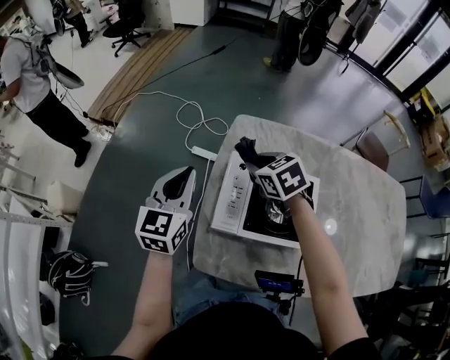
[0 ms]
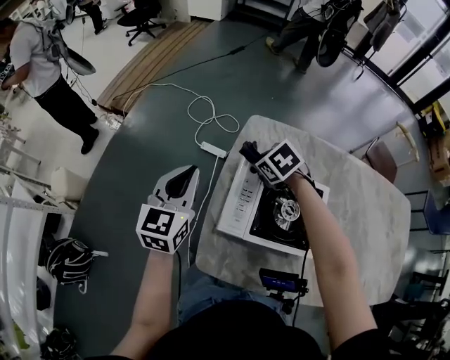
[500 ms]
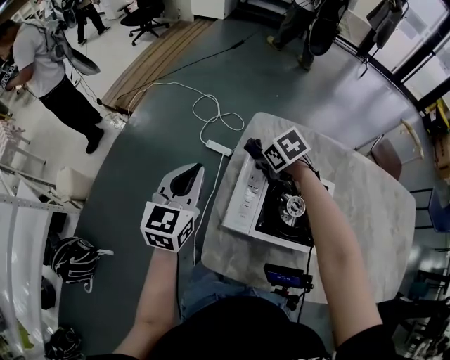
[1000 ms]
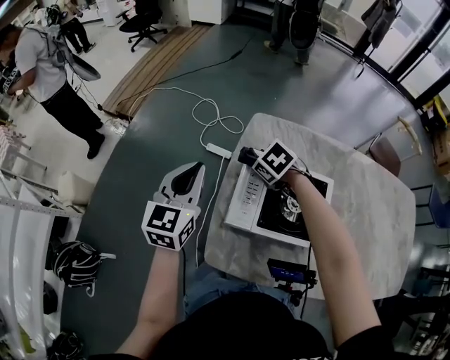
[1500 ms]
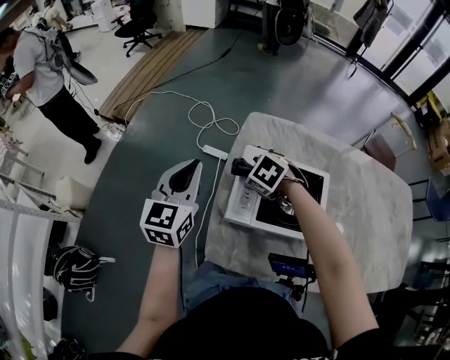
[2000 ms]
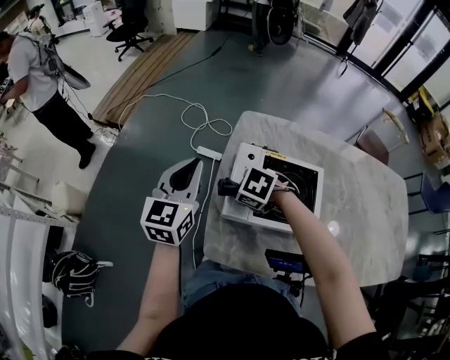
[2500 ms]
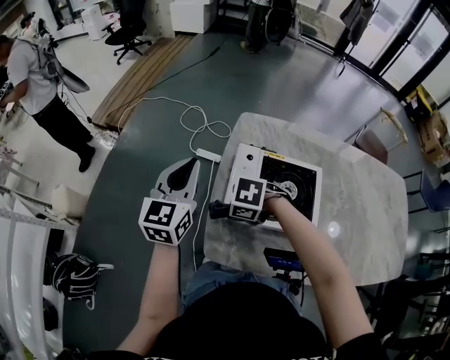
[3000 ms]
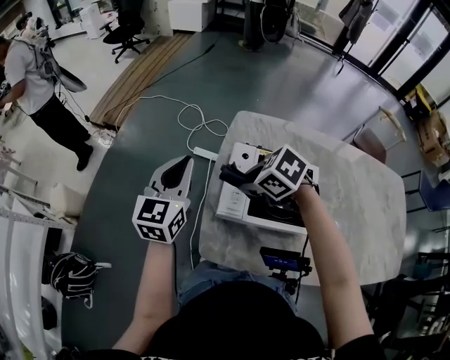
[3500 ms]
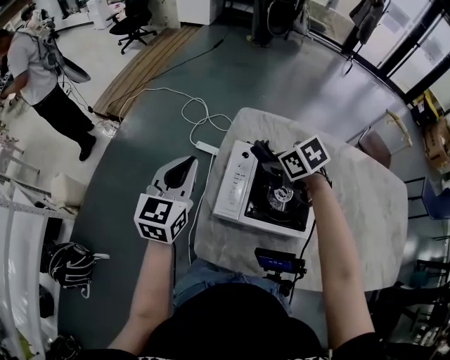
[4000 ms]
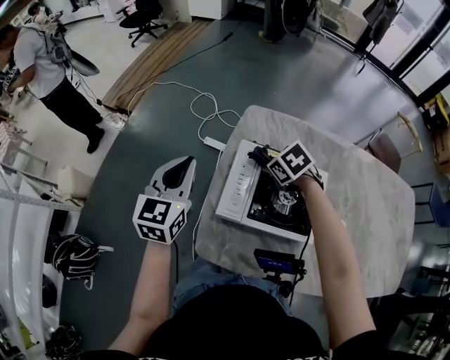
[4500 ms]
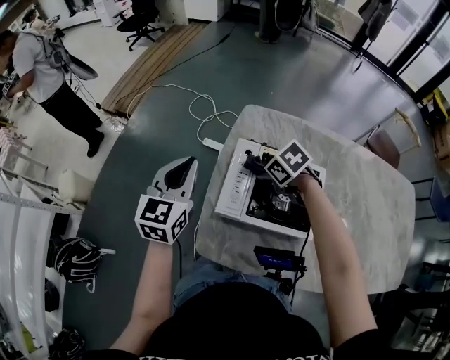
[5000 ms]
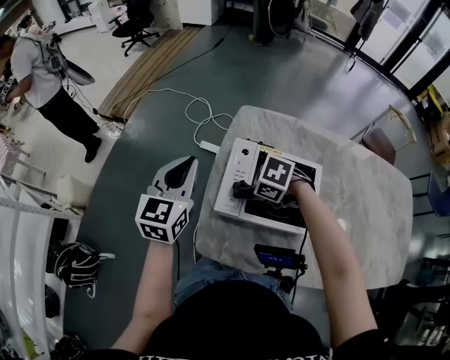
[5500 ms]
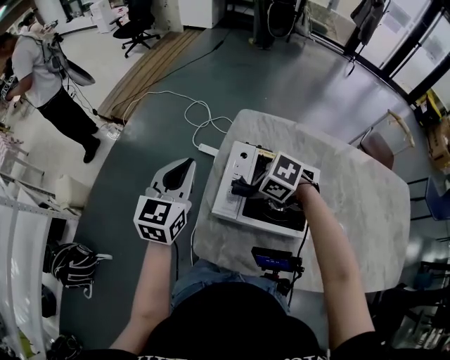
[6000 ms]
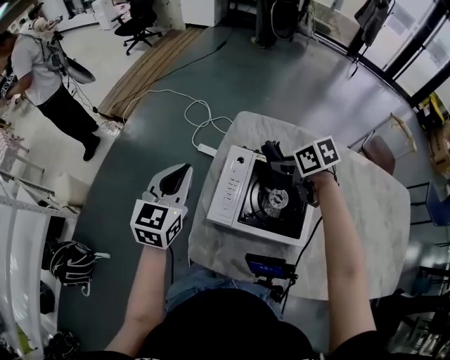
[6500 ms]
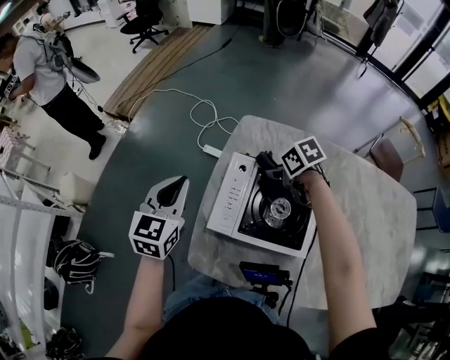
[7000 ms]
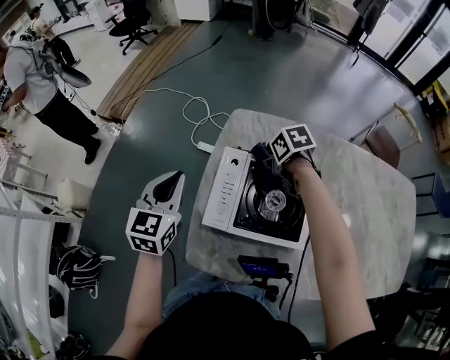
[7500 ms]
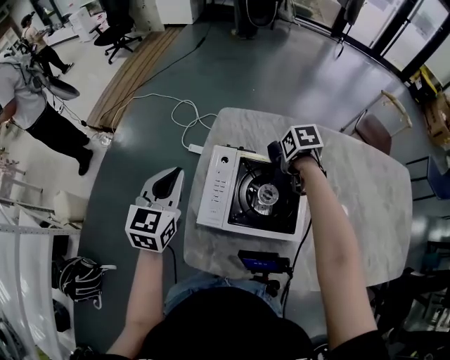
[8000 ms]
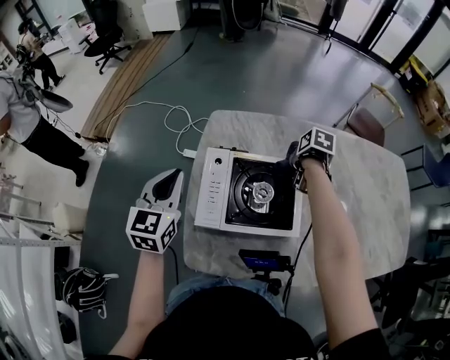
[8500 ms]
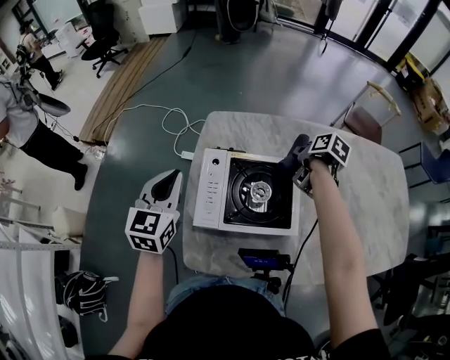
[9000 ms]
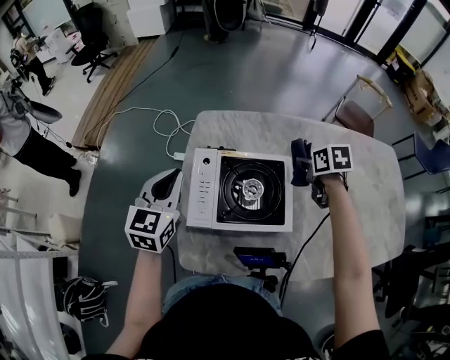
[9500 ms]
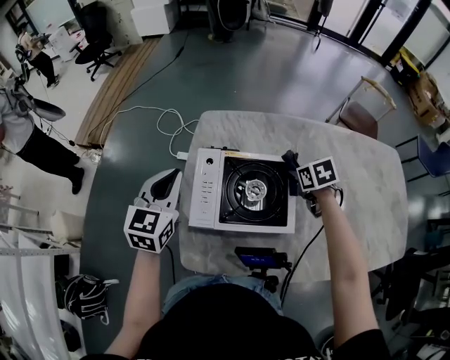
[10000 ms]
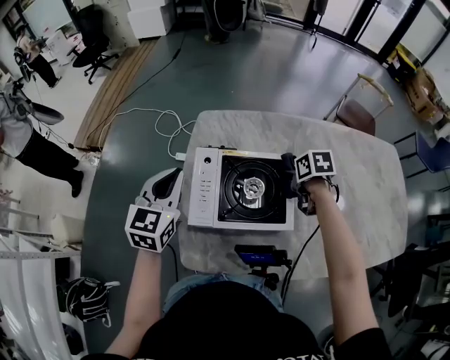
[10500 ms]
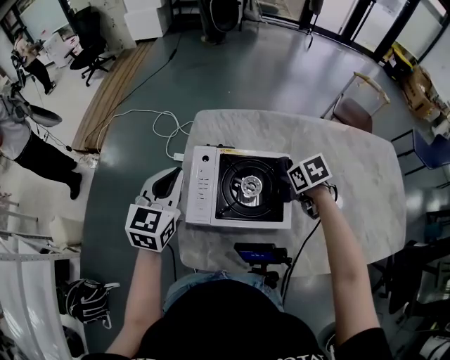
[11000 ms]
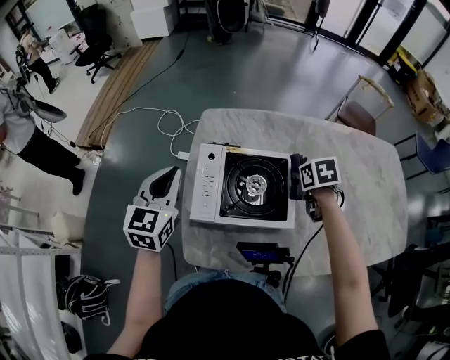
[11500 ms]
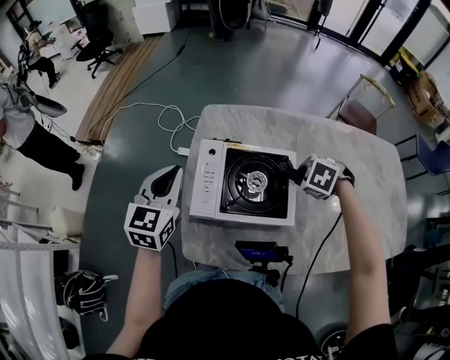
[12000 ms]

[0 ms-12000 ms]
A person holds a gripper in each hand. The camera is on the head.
0 ms to 2000 ms: The right gripper travels downward and to the left by about 10 cm, and swivels some 30 degrees.
2000 ms to 4000 ms: The right gripper moves roughly 10 cm, and swivels about 30 degrees.
4000 ms to 6000 ms: The right gripper moves some 10 cm, and swivels some 30 degrees.
6000 ms to 8000 ms: The right gripper changes place by some 20 cm, and twists some 60 degrees clockwise, seen from behind.
8000 ms to 10000 ms: The right gripper moves to the right and backward, roughly 10 cm.
10000 ms to 12000 ms: The right gripper ends up about 5 cm from where it was, and twists about 50 degrees counterclockwise, seen from behind.

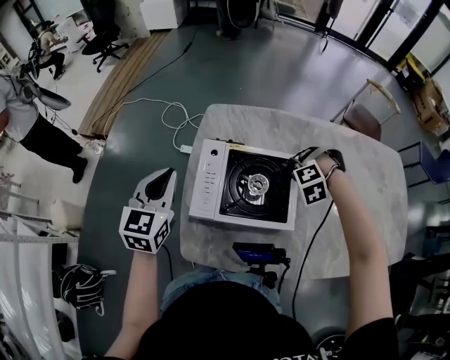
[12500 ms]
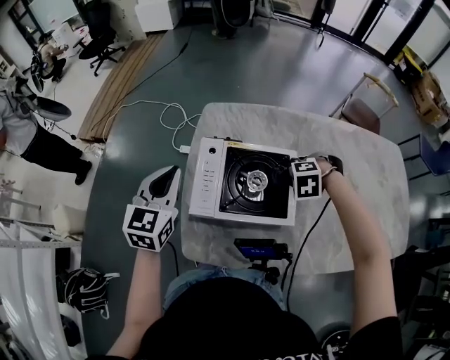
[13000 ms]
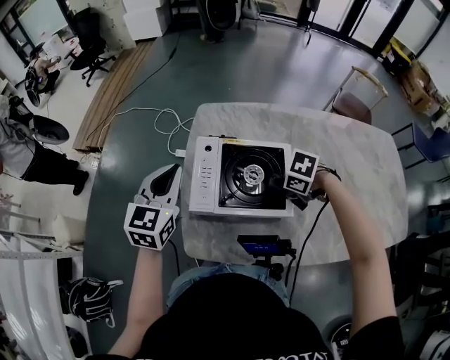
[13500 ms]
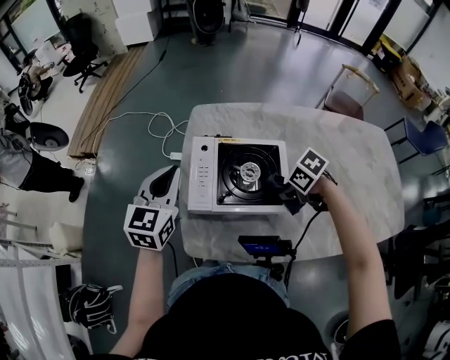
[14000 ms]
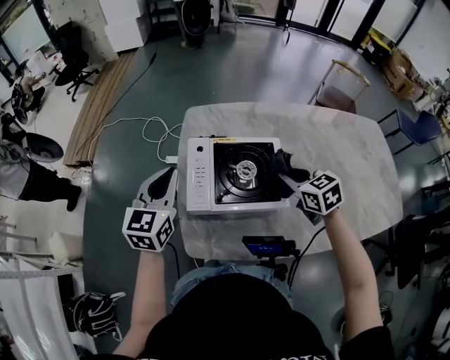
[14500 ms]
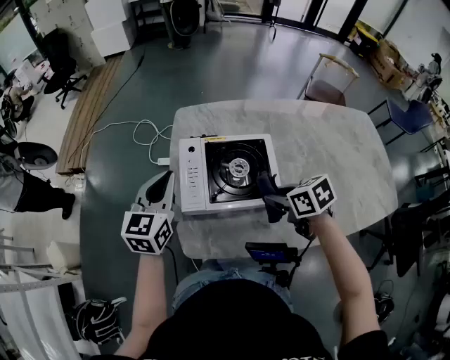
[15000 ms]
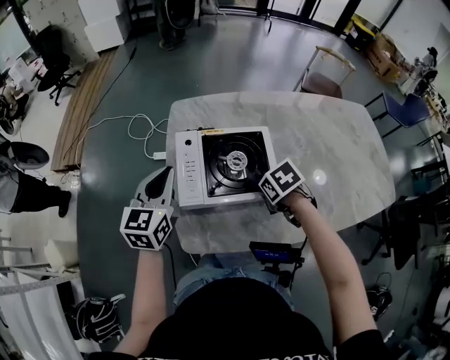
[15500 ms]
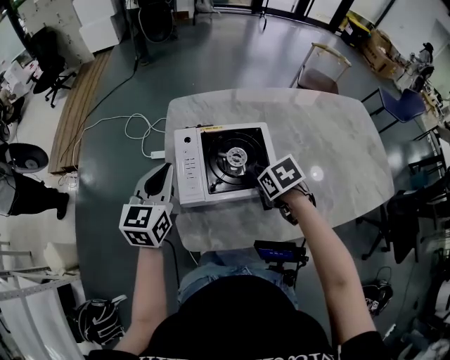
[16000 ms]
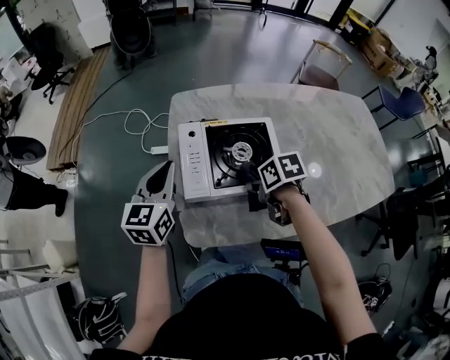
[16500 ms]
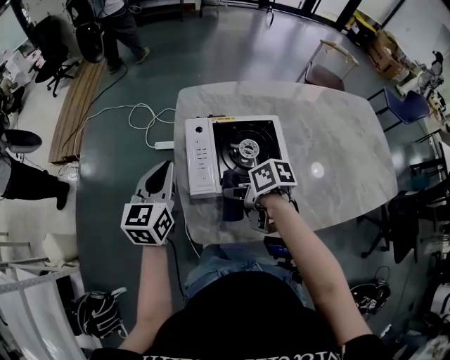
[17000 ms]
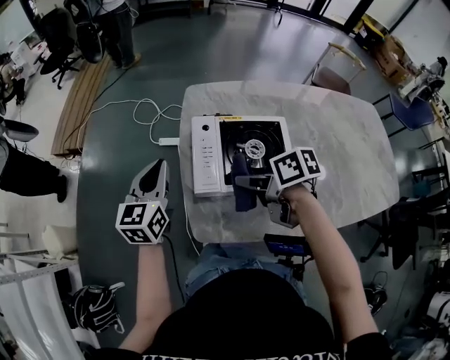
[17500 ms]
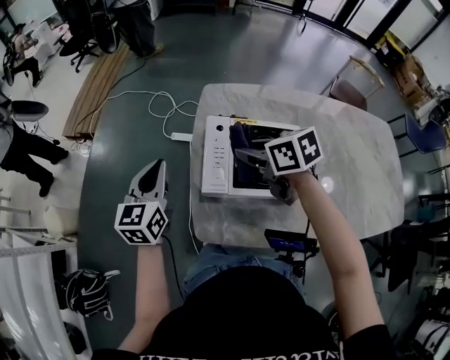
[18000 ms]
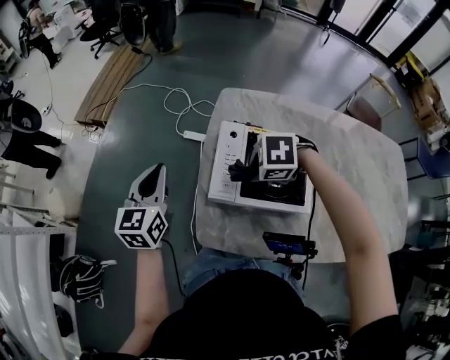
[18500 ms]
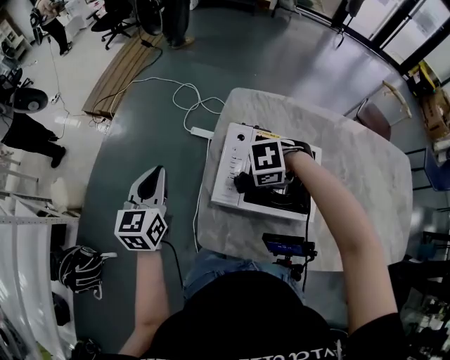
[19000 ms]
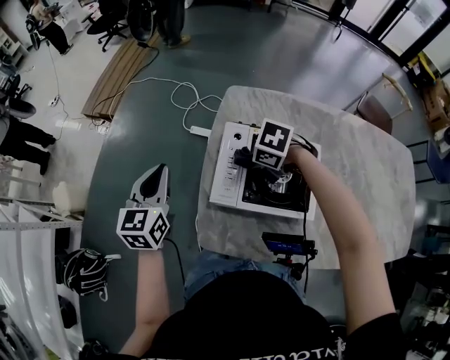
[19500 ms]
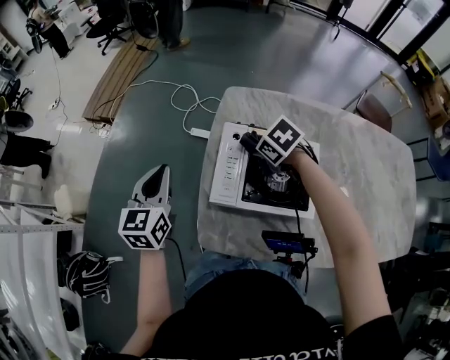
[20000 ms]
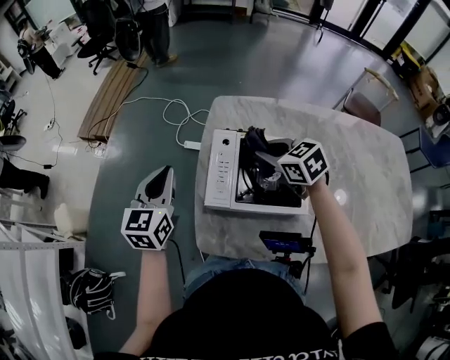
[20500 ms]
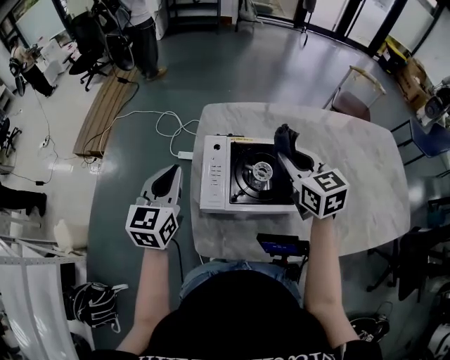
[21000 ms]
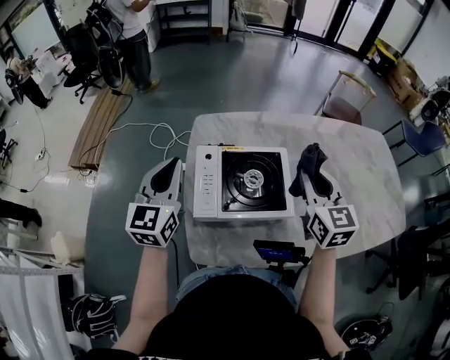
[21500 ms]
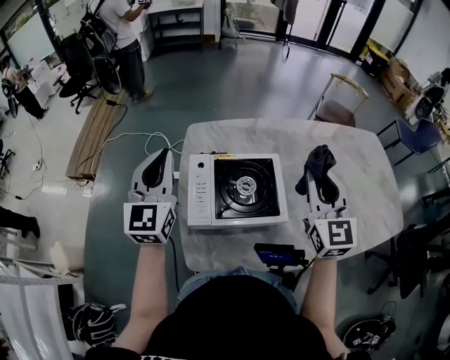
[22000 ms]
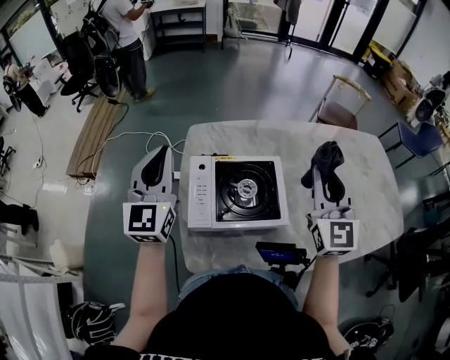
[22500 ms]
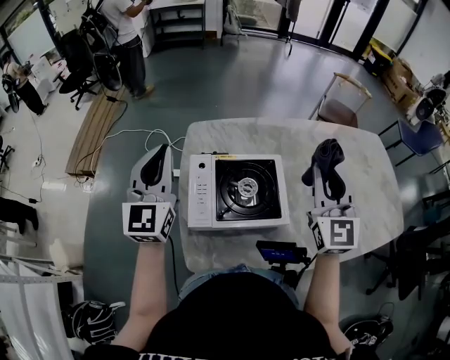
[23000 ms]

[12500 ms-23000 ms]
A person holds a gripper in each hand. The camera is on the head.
12500 ms to 14500 ms: The right gripper moves upward, about 10 cm, and rolls clockwise, seen from behind, by roughly 90 degrees.
14500 ms to 16500 ms: The right gripper ends up some 15 cm from where it was, and swivels roughly 40 degrees.
16500 ms to 19000 ms: The left gripper changes place by roughly 15 cm, and swivels approximately 30 degrees. Meanwhile the right gripper goes upward and returns, about 10 cm each way, and rotates around the line of its fingers by roughly 90 degrees, counterclockwise from behind.
19000 ms to 21000 ms: The left gripper shifts by some 10 cm. Meanwhile the right gripper heads upward, covering roughly 15 cm, and tips its fingers upward by approximately 50 degrees.
21000 ms to 23000 ms: The right gripper goes roughly 15 cm to the right and upward, and rotates some 40 degrees. The left gripper is displaced upward and forward by about 10 cm, and rotates about 20 degrees.

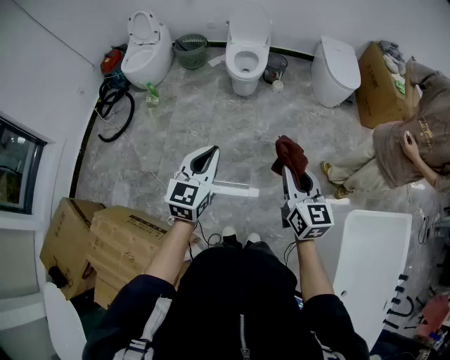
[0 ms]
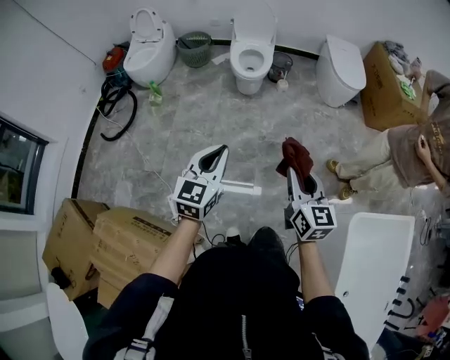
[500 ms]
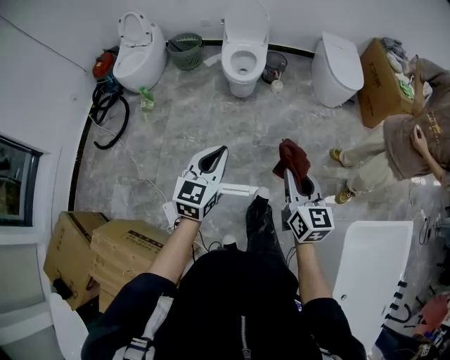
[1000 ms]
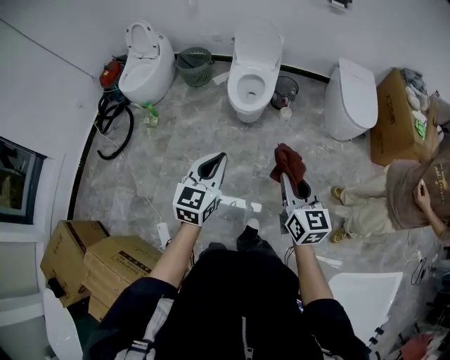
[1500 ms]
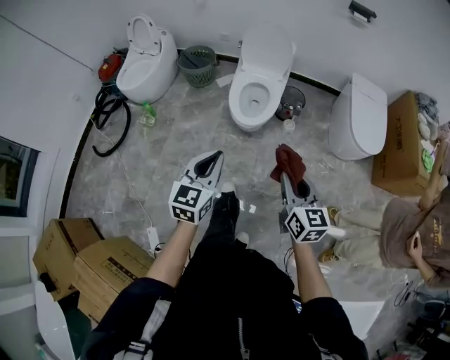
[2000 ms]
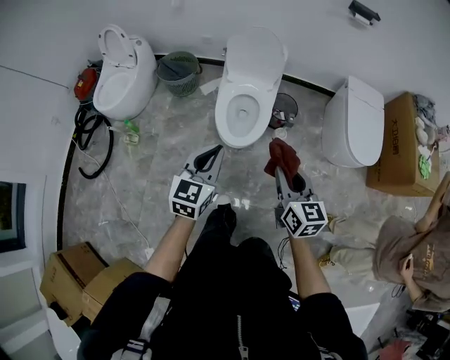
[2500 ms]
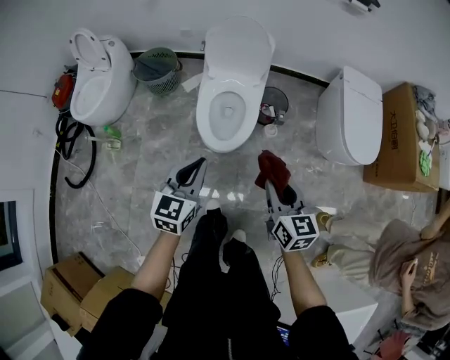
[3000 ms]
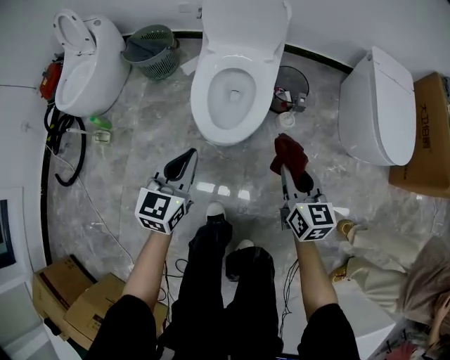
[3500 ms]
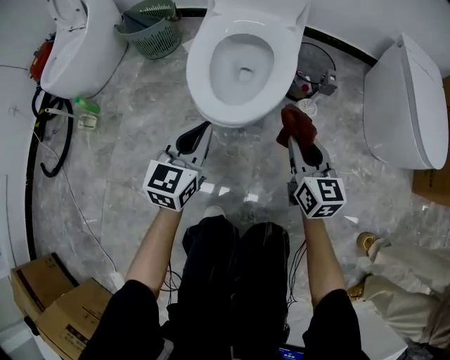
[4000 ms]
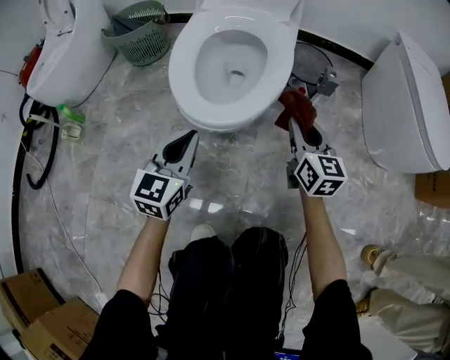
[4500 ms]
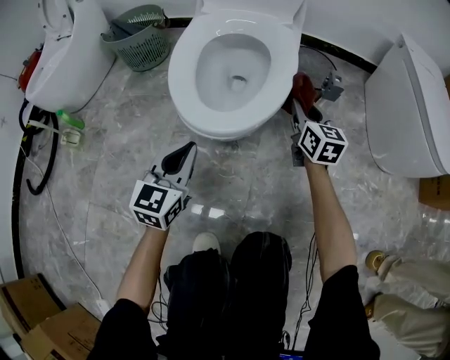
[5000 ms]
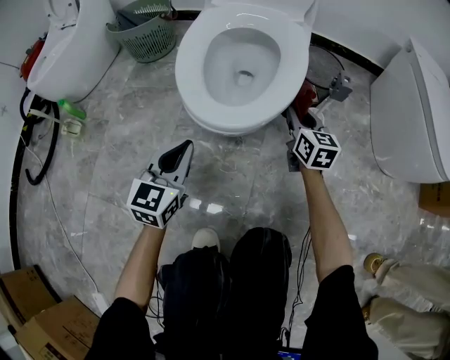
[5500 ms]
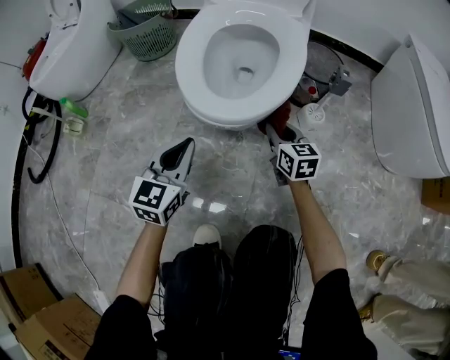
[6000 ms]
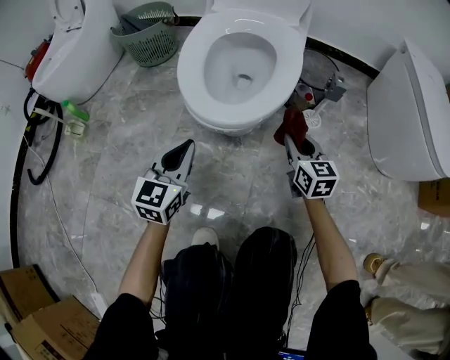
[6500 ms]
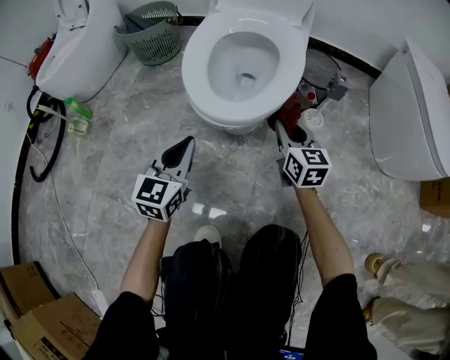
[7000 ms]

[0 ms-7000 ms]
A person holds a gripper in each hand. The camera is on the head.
0 ms to 2000 ms: The pair of grippers is taken forward, some 50 cm.
2000 ms to 3500 ms: Both grippers travel together downward and forward, about 40 cm.
3500 ms to 5000 ms: The right gripper goes roughly 40 cm downward and forward; the left gripper travels downward by roughly 35 cm.
5000 ms to 7000 ms: The right gripper is displaced backward and to the left by about 10 cm.
